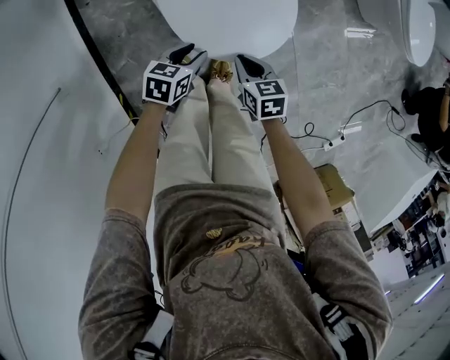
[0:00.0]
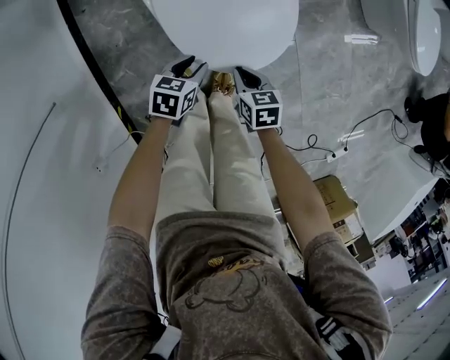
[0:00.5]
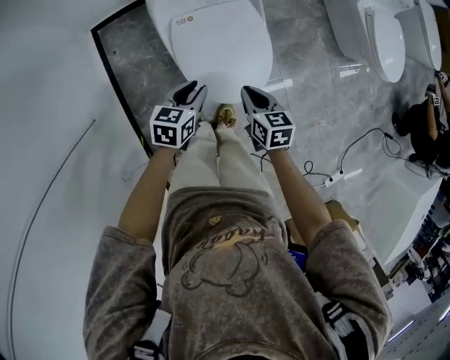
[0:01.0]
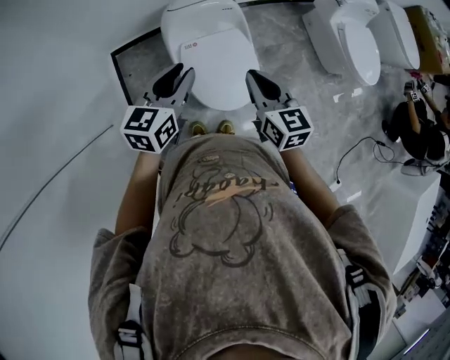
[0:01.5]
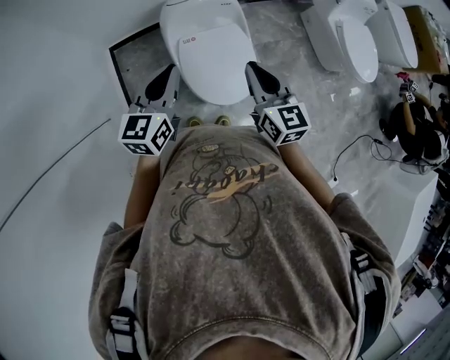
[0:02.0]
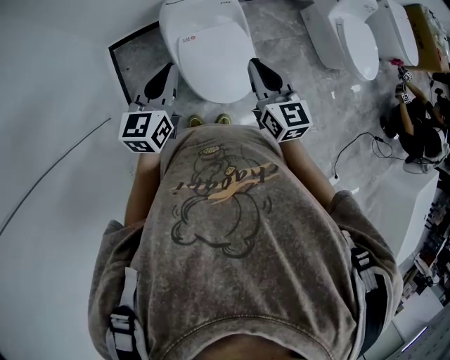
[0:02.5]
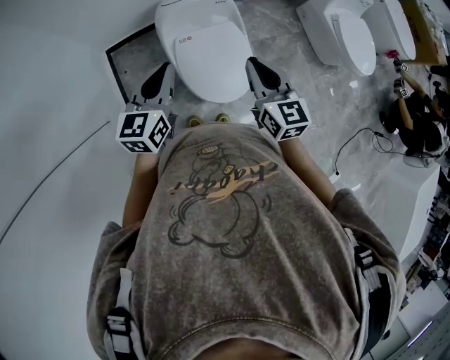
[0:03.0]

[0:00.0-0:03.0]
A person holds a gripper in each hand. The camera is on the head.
0:00.0 to 0:01.5: The two grippers go approximately 40 cm upward. The left gripper rotates about 40 degrees. The right gripper tilts its fingers about 40 degrees upward.
0:01.5 to 0:03.0: The left gripper closes.

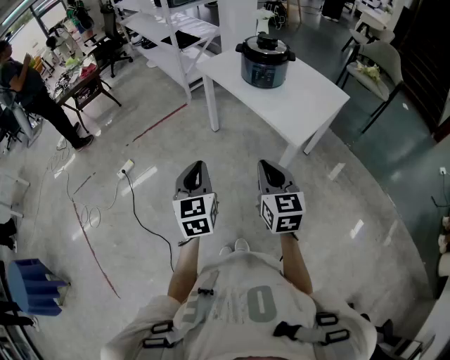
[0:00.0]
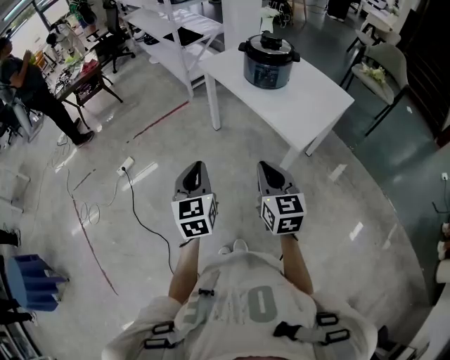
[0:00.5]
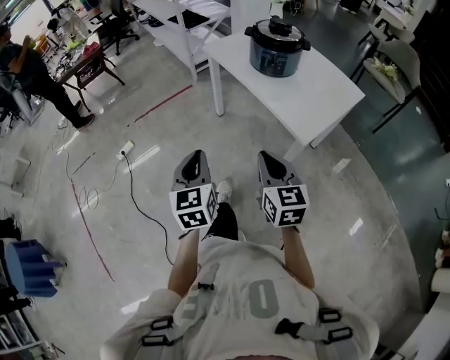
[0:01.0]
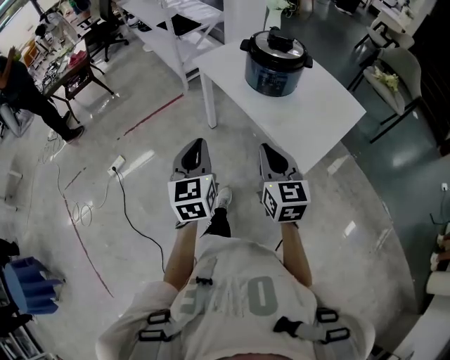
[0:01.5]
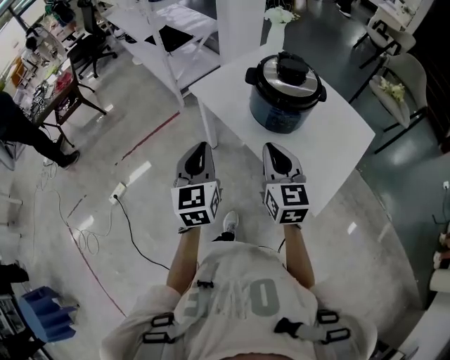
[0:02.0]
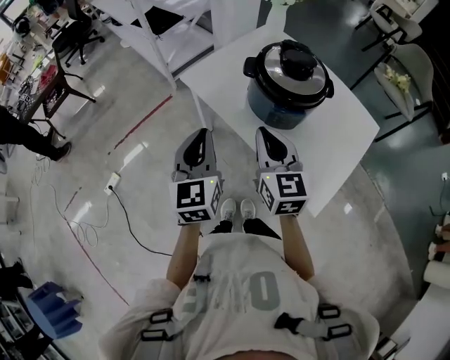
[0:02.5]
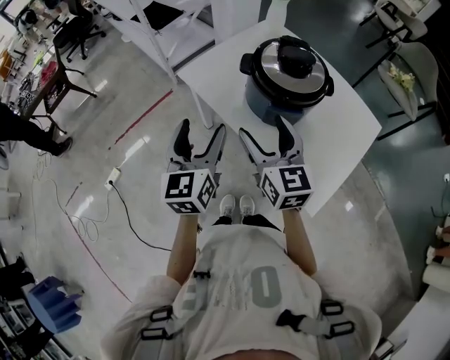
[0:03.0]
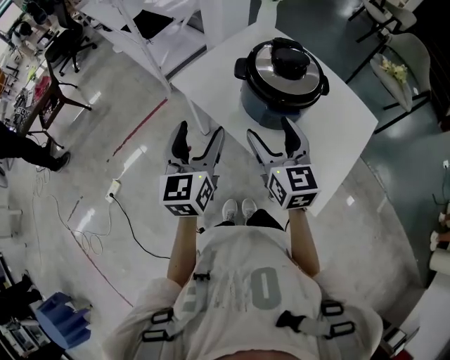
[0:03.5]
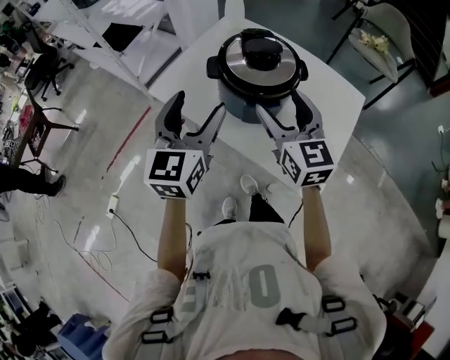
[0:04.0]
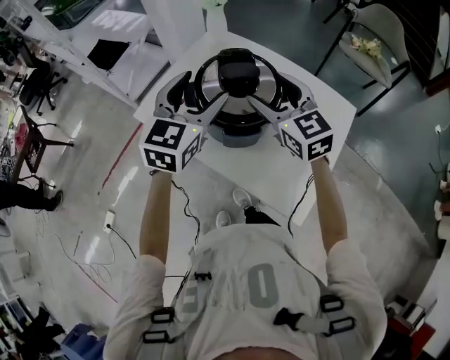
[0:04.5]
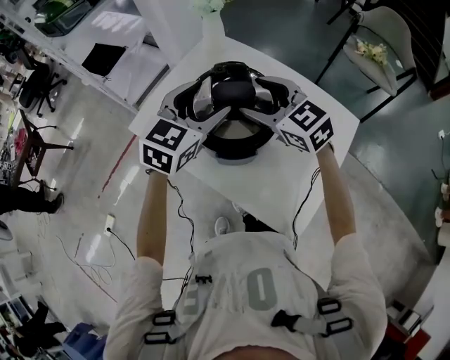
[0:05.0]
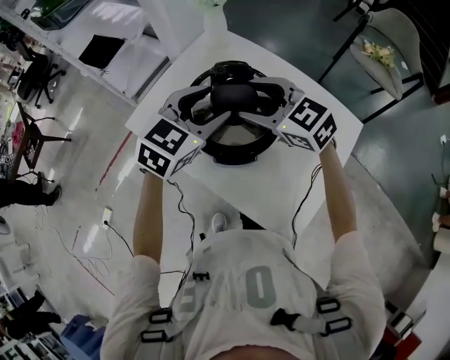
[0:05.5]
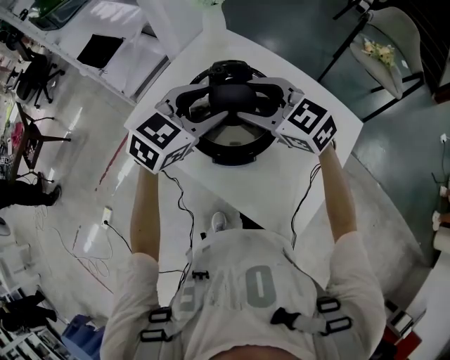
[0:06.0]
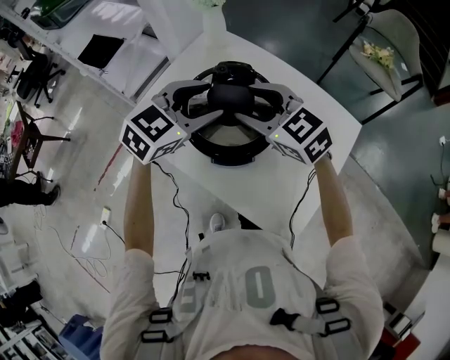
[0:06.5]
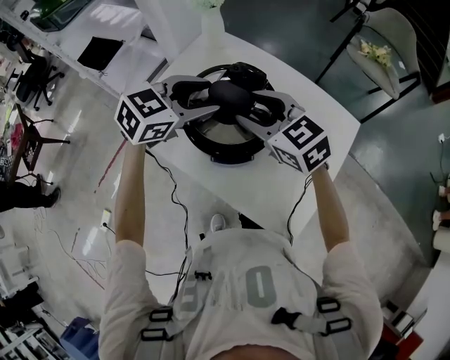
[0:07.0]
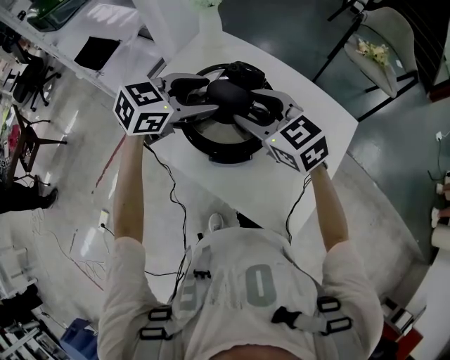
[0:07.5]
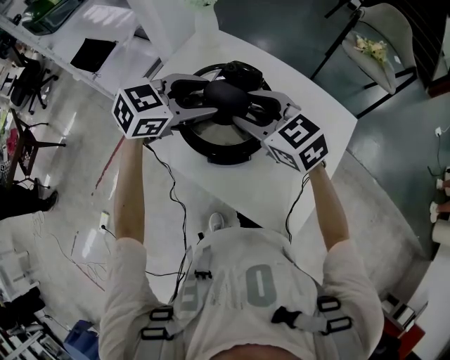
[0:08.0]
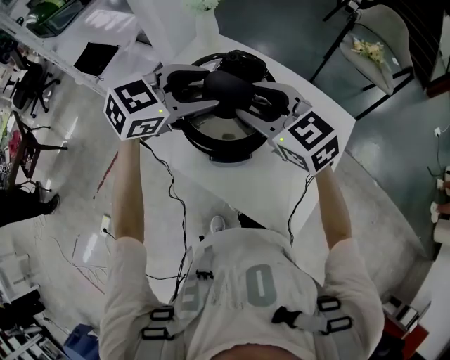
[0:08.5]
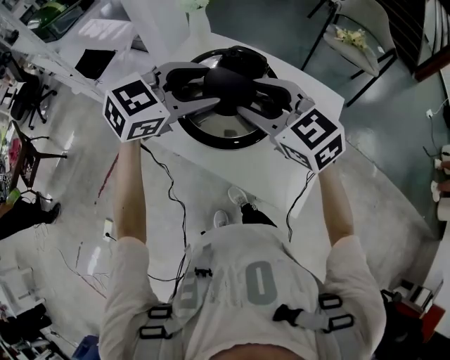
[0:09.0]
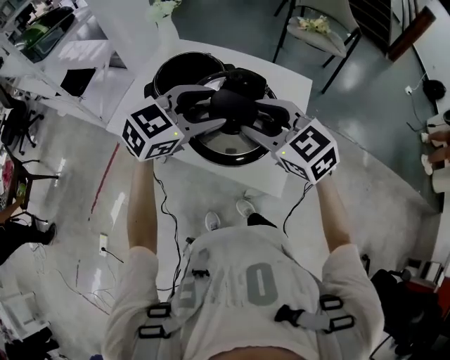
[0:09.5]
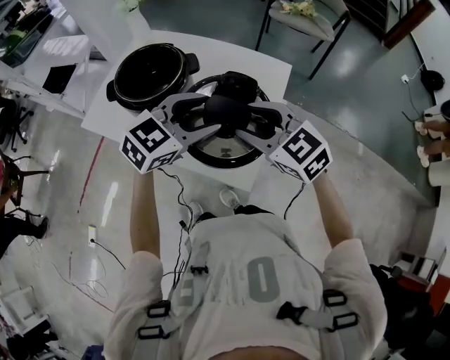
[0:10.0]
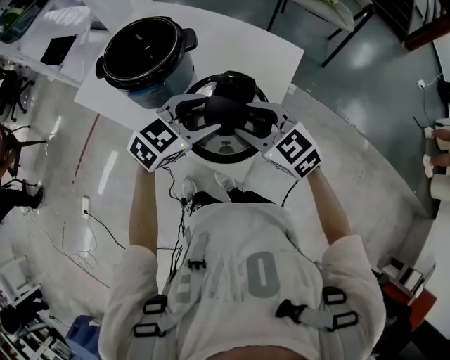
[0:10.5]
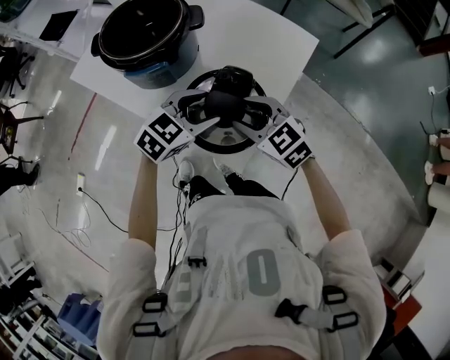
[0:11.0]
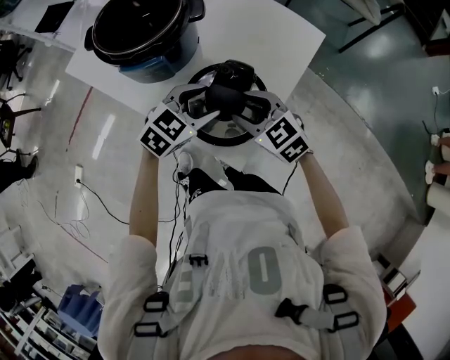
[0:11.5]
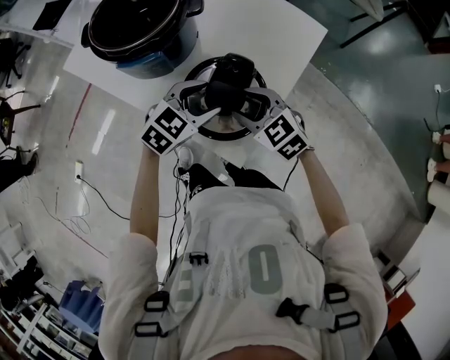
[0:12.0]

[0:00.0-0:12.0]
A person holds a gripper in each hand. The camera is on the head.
0:00.0 to 0:02.0: The two grippers go some 40 cm forward.
0:02.0 to 0:04.0: Both grippers travel together forward and to the right, about 15 cm. The right gripper opens its fingers, while the left gripper turns by some 30 degrees, and opens its fingers.
0:04.0 to 0:06.0: The left gripper goes roughly 20 cm forward and to the right, and rotates roughly 40 degrees, while the right gripper shifts about 15 cm forward, and turns by some 40 degrees.
0:06.0 to 0:08.0: The left gripper turns by roughly 20 degrees.
0:08.0 to 0:10.0: The grippers both shift to the right and backward by some 30 cm.
0:10.0 to 0:12.0: Both grippers travel together downward, approximately 20 cm. The left gripper turns by roughly 20 degrees.

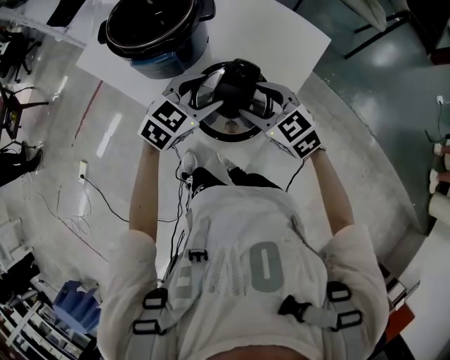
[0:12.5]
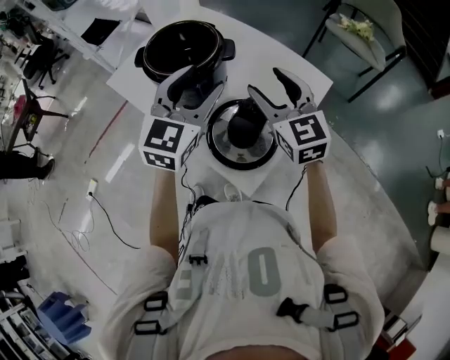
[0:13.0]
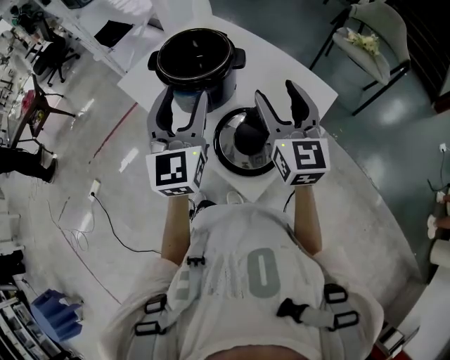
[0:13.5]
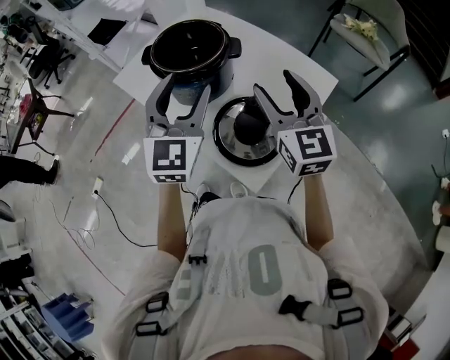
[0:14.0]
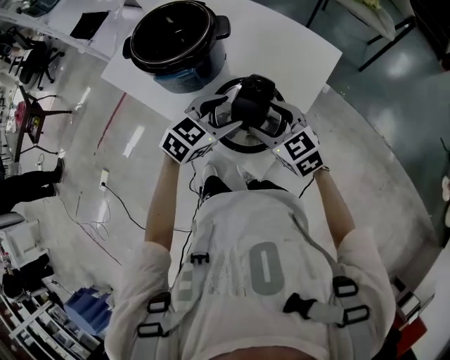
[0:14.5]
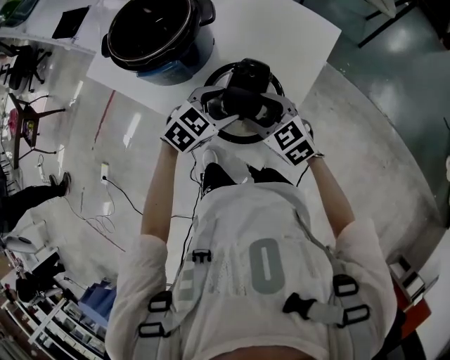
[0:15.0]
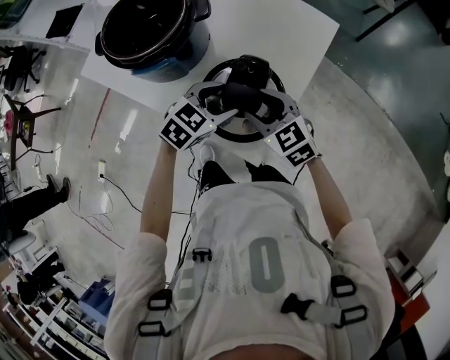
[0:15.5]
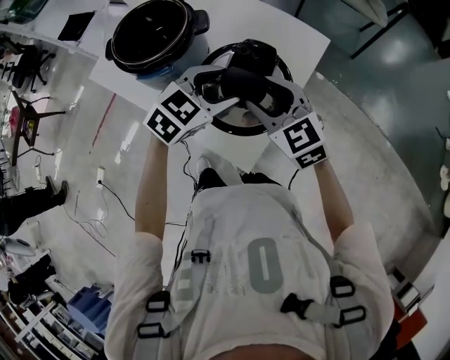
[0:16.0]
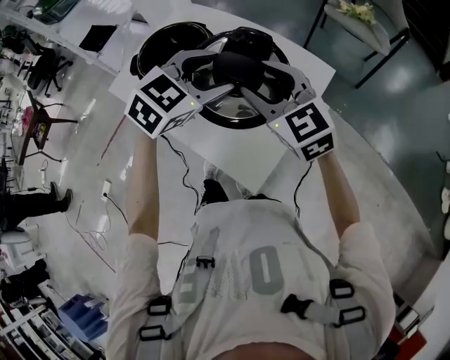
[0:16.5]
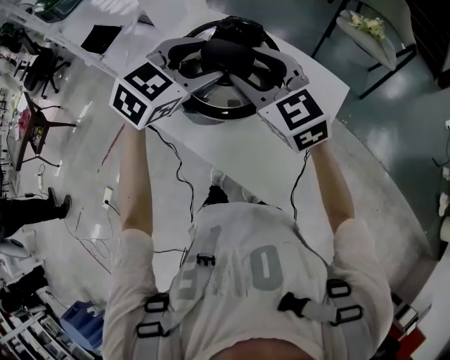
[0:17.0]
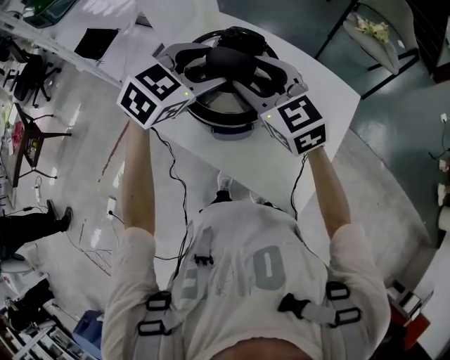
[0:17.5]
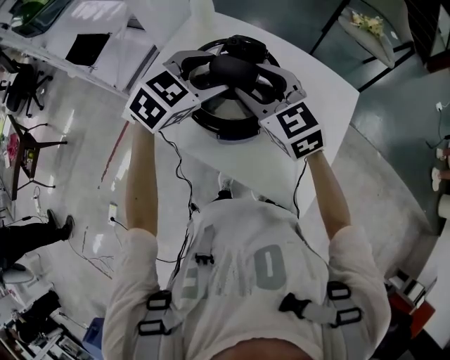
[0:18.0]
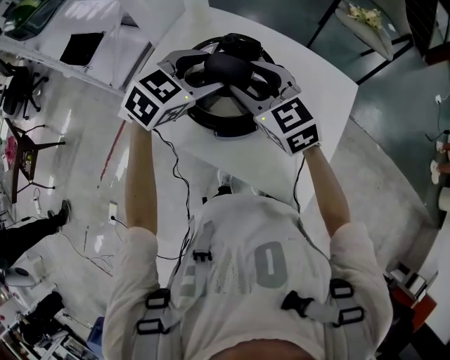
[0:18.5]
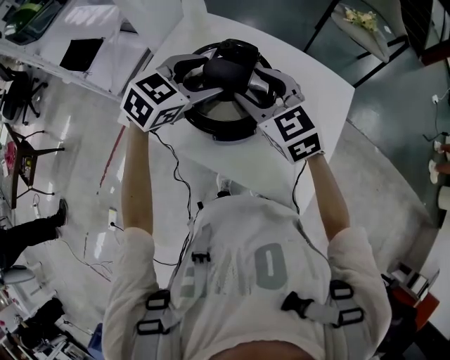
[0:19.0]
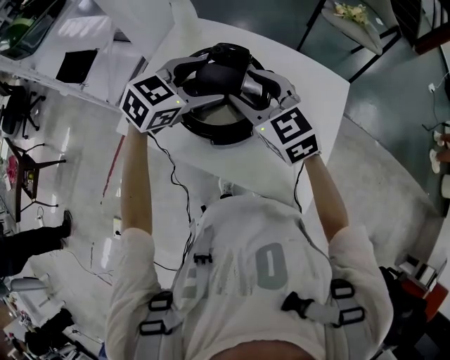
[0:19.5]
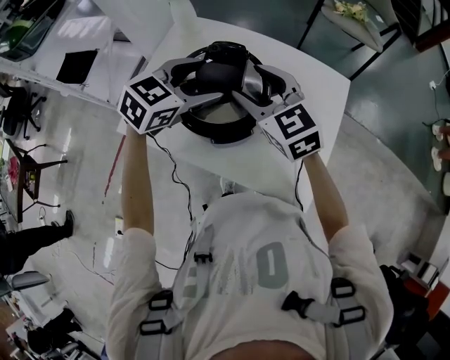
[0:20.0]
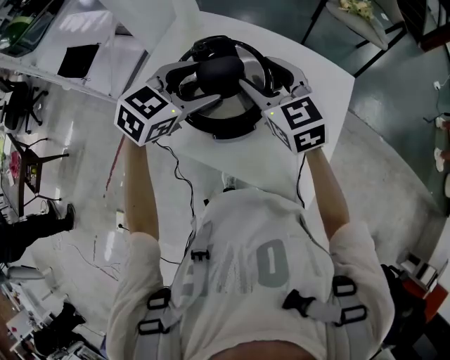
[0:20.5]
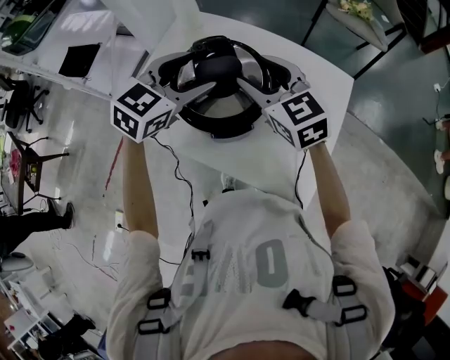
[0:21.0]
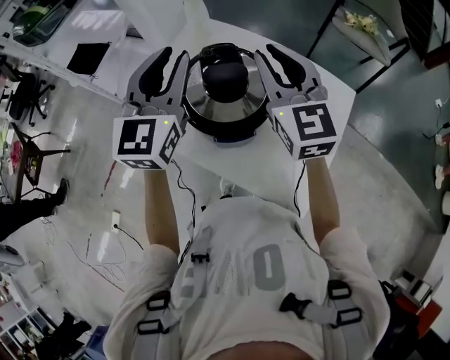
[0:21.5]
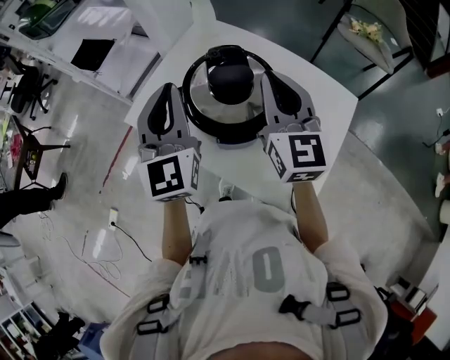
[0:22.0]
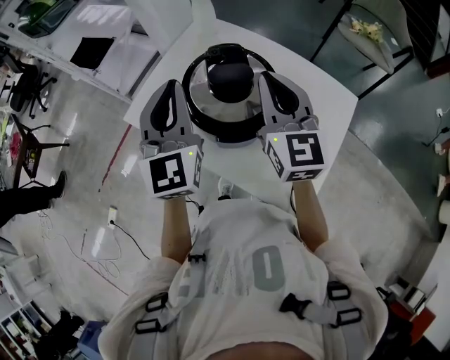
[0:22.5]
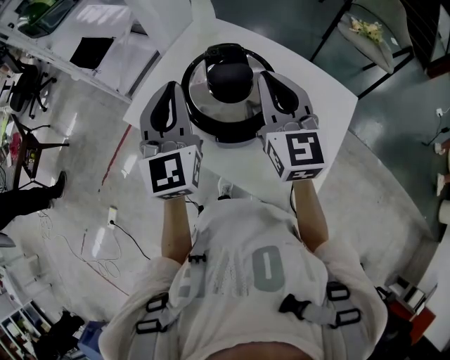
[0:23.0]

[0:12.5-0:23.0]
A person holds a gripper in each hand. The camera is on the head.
0:12.5 to 0:14.5: The right gripper travels upward and back again, about 20 cm each way. The left gripper moves roughly 25 cm upward and comes back.
0:14.5 to 0:16.5: The right gripper travels upward by some 20 cm. The left gripper shifts about 20 cm upward and forward.
0:16.5 to 0:19.0: The two grippers go some 25 cm to the left and forward.
0:19.0 to 0:21.0: There are only small adjustments of the grippers.
0:21.0 to 0:23.0: The right gripper travels upward by approximately 5 cm, changes its angle by approximately 20 degrees, and closes; the left gripper is displaced to the left and upward by about 10 cm, rotates roughly 60 degrees, and closes its fingers.

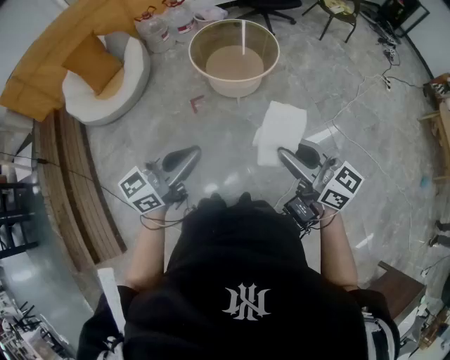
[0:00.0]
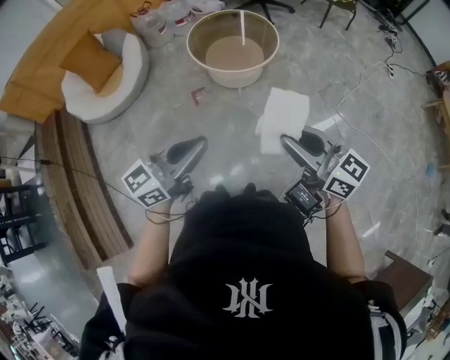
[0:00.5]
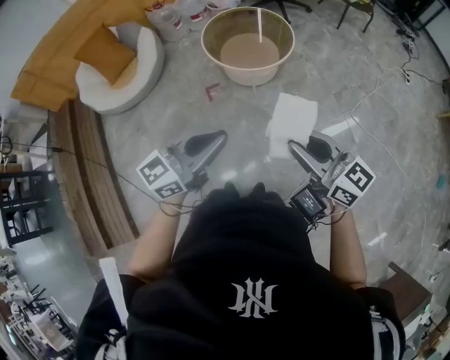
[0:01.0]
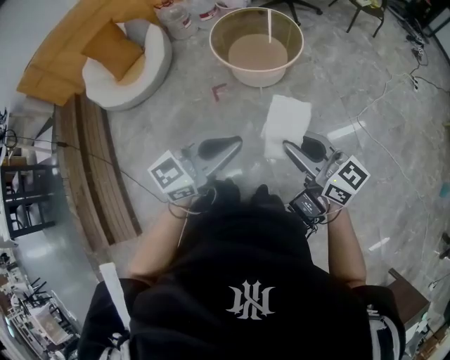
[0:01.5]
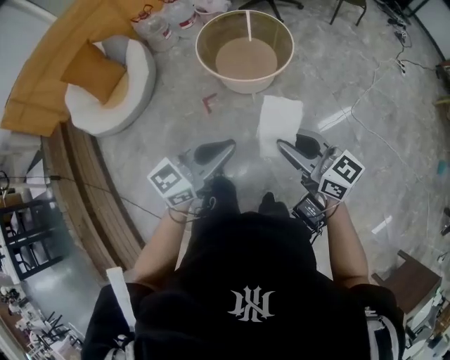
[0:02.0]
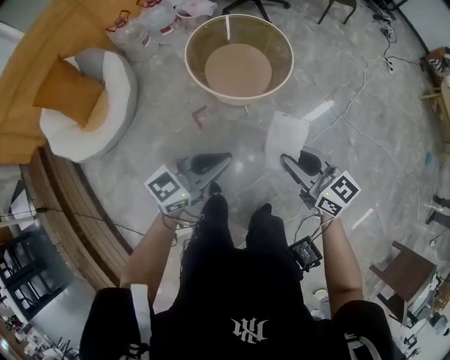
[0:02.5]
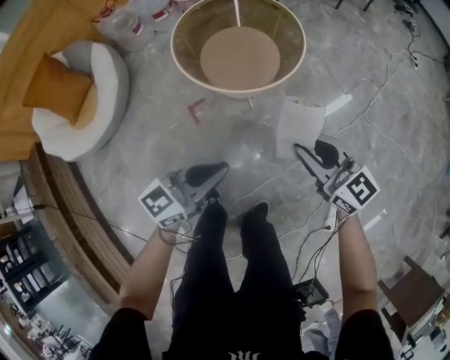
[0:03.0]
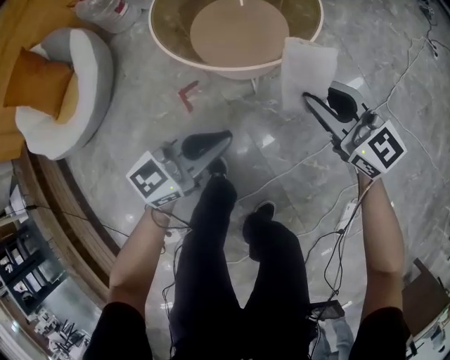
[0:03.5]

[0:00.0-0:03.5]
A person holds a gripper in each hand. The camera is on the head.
0:00.0 to 0:02.0: The right gripper goes approximately 15 cm forward, to the left and downward; the left gripper moves forward, roughly 10 cm.
0:02.0 to 0:03.5: Both grippers travel together downward and forward, some 50 cm.
